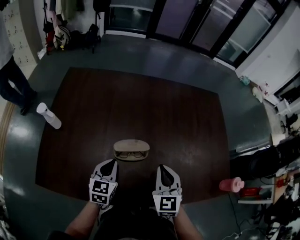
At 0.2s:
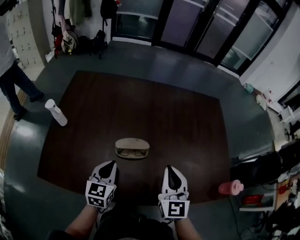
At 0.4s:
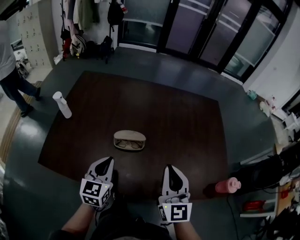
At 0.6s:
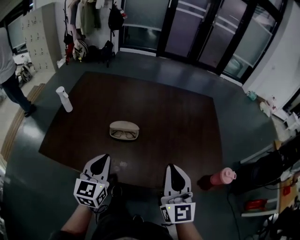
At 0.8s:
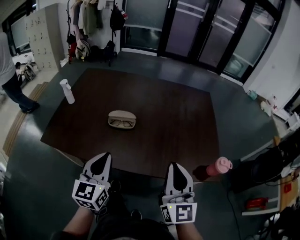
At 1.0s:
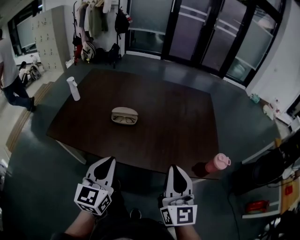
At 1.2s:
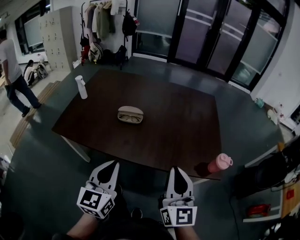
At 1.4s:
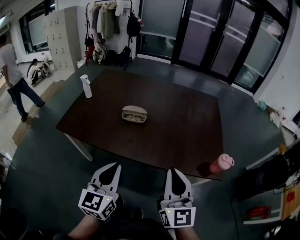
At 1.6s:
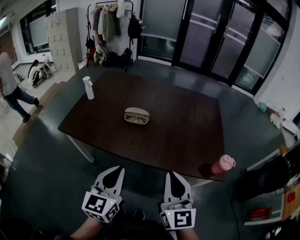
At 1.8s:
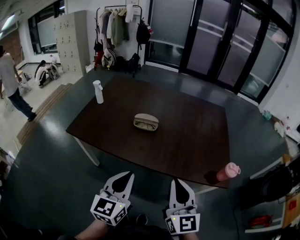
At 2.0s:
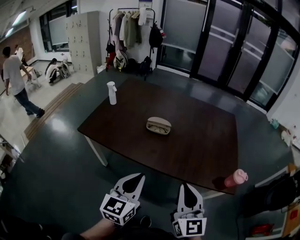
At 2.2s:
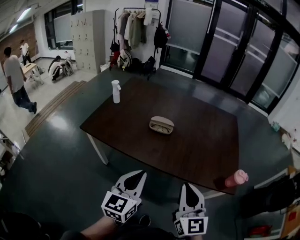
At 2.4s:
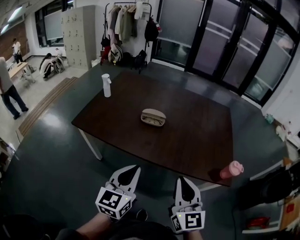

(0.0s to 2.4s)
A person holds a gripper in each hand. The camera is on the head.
0.0s - 1.2s: Both grippers move backward, upward and to the right, about 40 cm. The right gripper changes its angle by some 40 degrees, while the left gripper turns by approximately 20 degrees.
1.2s - 2.4s: The left gripper ends up approximately 5 cm from where it was. Meanwhile the right gripper moves to the left, approximately 5 cm.

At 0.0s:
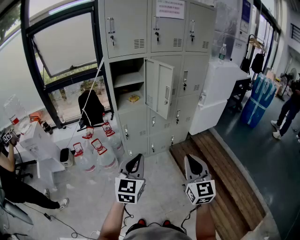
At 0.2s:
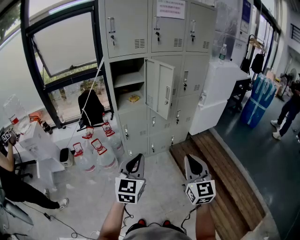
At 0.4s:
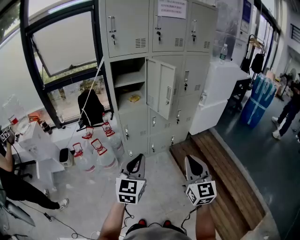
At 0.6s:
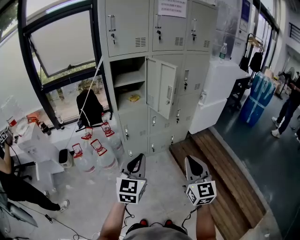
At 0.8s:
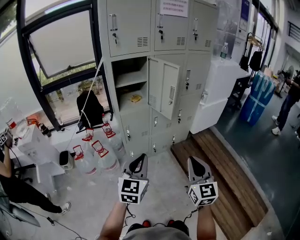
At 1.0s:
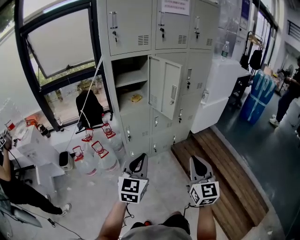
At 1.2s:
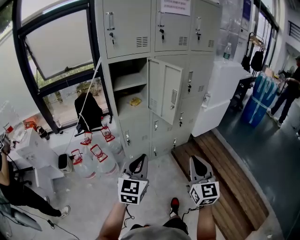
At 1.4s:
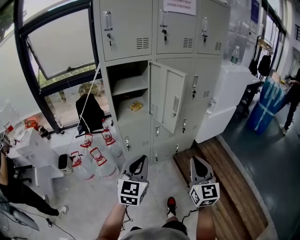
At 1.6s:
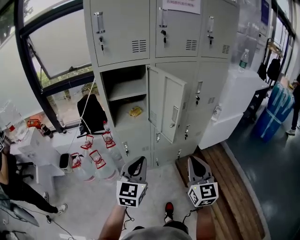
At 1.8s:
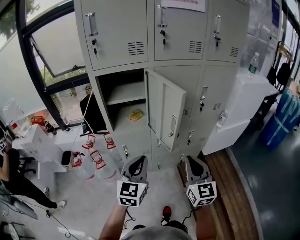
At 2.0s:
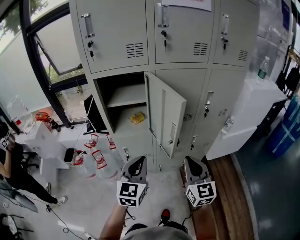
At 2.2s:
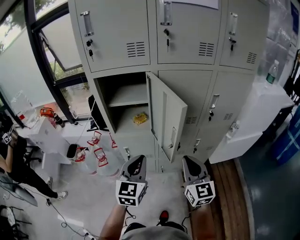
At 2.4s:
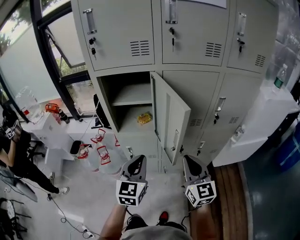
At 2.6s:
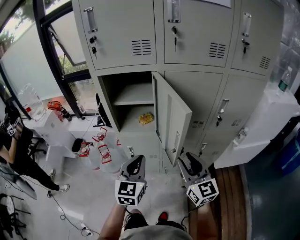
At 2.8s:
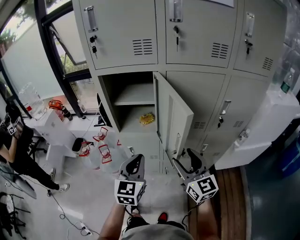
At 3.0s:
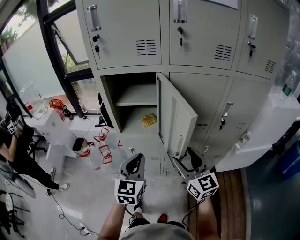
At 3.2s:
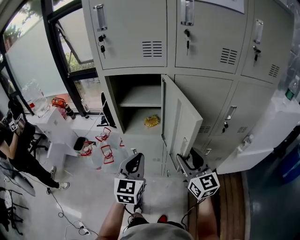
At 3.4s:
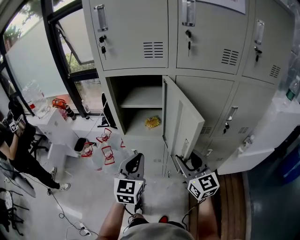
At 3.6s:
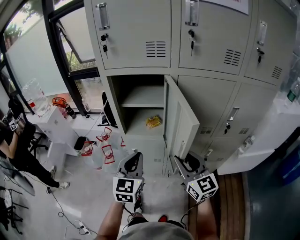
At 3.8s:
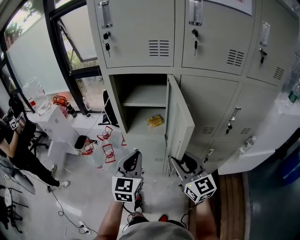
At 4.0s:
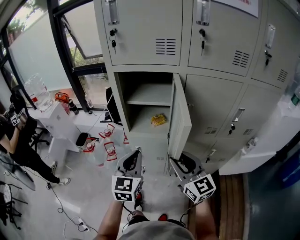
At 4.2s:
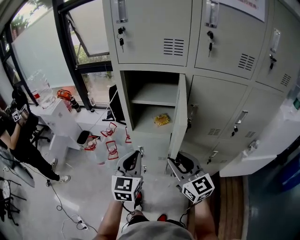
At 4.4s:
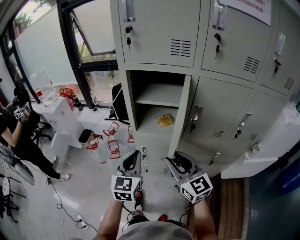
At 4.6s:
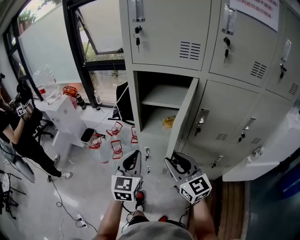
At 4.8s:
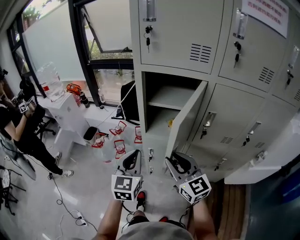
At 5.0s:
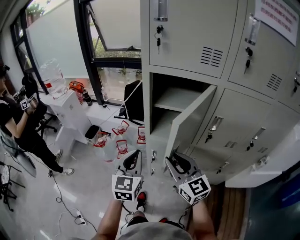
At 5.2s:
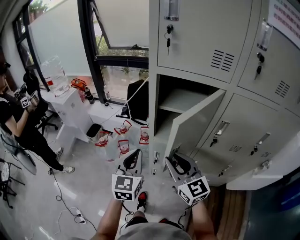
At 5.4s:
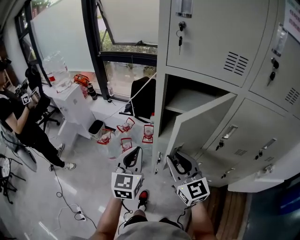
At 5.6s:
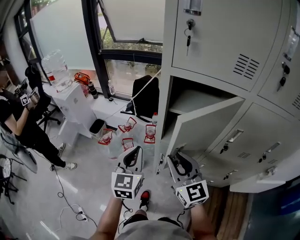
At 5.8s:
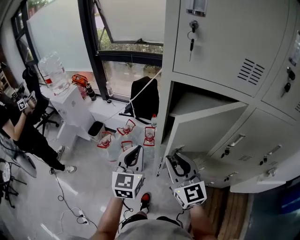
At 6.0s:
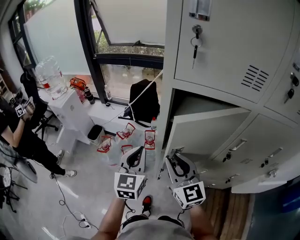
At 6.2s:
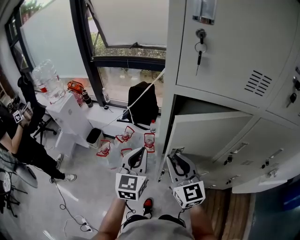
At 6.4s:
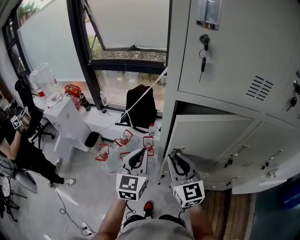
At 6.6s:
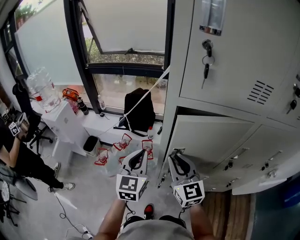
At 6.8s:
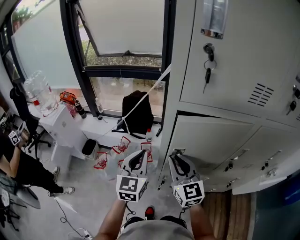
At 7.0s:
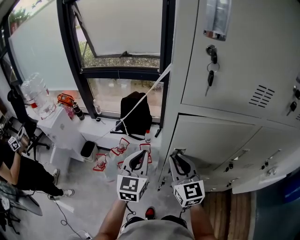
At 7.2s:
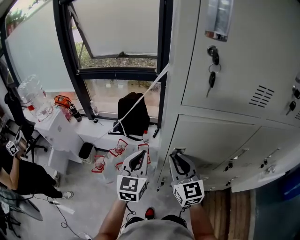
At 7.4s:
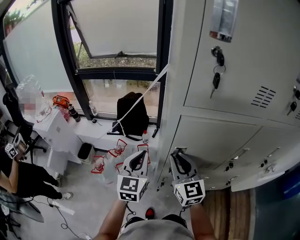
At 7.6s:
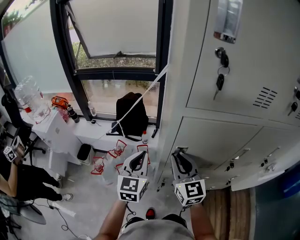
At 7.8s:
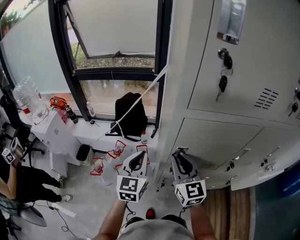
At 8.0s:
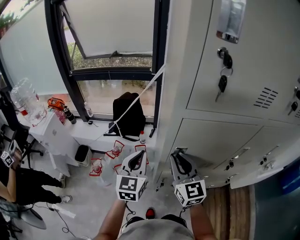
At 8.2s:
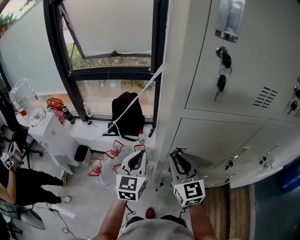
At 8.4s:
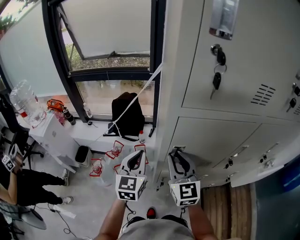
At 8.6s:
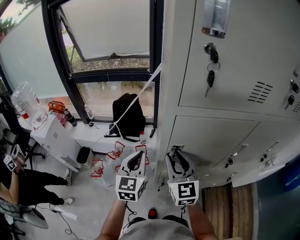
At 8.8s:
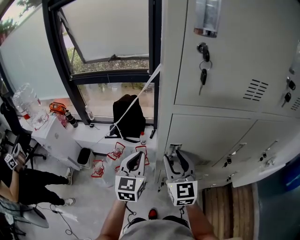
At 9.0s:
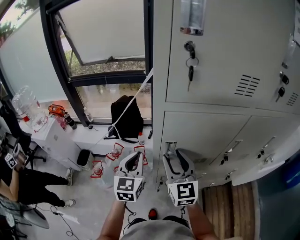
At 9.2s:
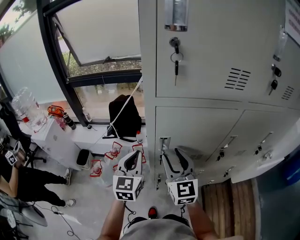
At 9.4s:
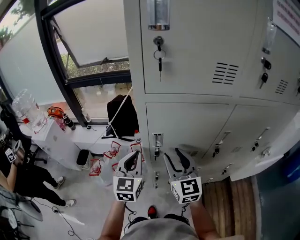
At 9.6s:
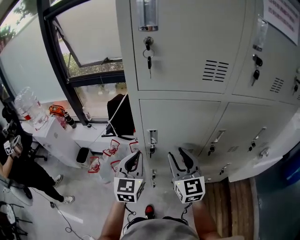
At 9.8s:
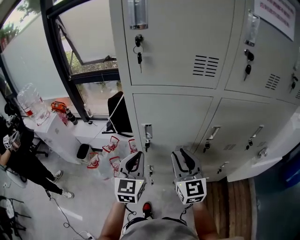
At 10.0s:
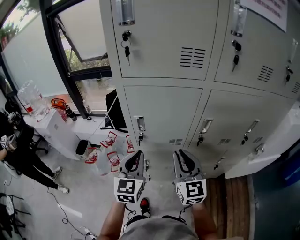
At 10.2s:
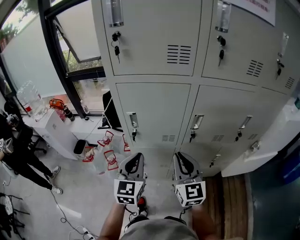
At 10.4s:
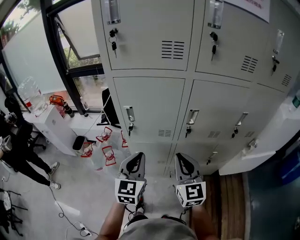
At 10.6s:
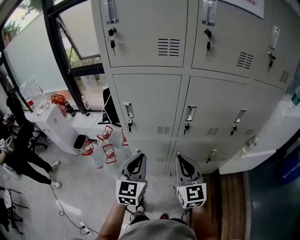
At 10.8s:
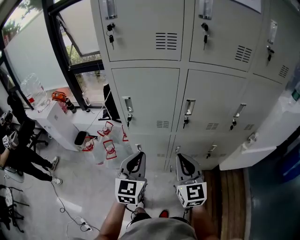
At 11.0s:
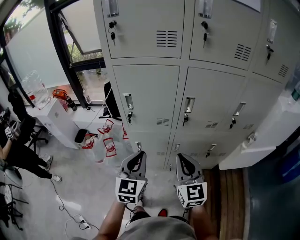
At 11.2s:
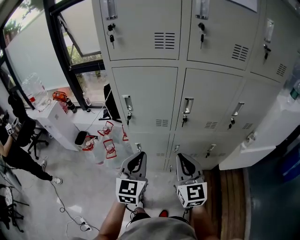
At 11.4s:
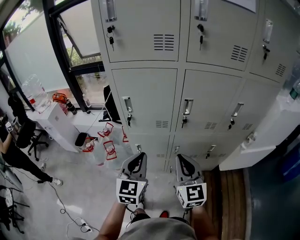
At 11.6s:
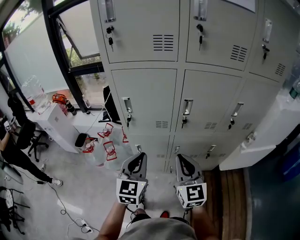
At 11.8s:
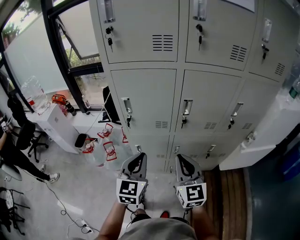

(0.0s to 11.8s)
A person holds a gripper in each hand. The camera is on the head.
0.0s - 1.4s: Both grippers move forward, about 15 cm.
1.4s - 3.0s: The left gripper moves some 25 cm, and changes its angle by roughly 30 degrees; the right gripper changes place by roughly 30 cm, swivels approximately 40 degrees, and opens up.
3.0s - 4.4s: Both grippers move to the left, some 10 cm. The right gripper closes up.
4.4s - 6.0s: Both grippers travel together forward and to the left, approximately 20 cm.
6.0s - 7.4s: Both grippers move forward, roughly 10 cm.
7.4s - 8.8s: The right gripper opens up.
8.8s - 10.4s: The grippers both shift to the right and backward by some 30 cm. The right gripper closes its fingers.
10.4s - 11.8s: The two grippers go approximately 5 cm backward.

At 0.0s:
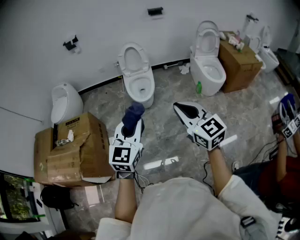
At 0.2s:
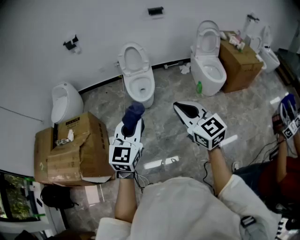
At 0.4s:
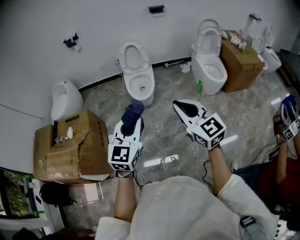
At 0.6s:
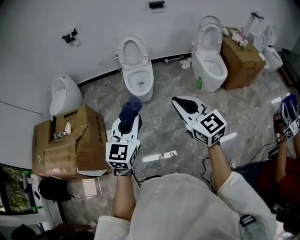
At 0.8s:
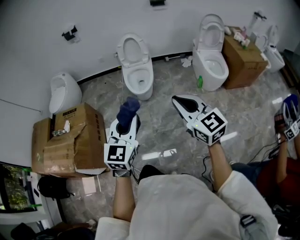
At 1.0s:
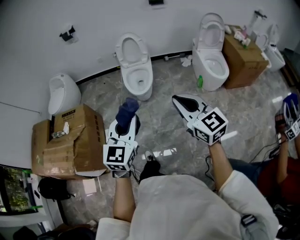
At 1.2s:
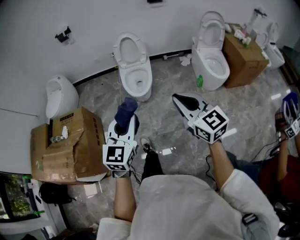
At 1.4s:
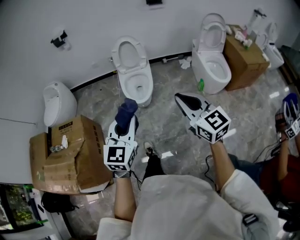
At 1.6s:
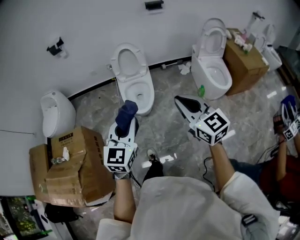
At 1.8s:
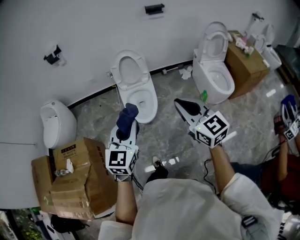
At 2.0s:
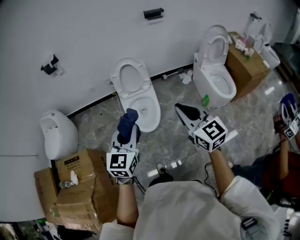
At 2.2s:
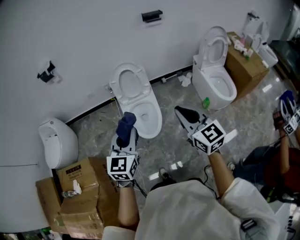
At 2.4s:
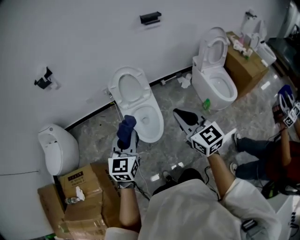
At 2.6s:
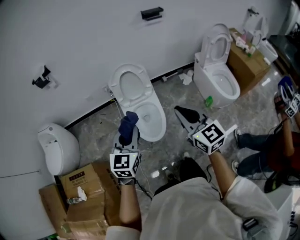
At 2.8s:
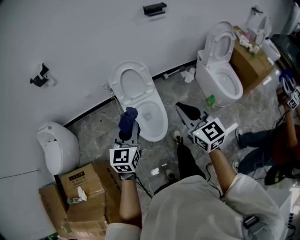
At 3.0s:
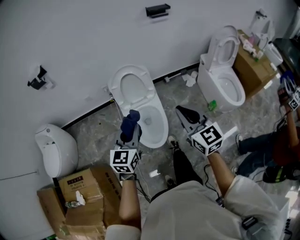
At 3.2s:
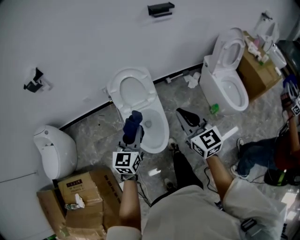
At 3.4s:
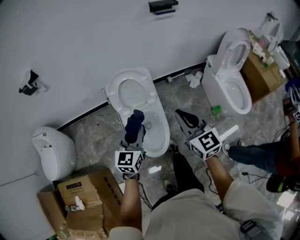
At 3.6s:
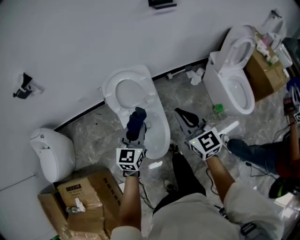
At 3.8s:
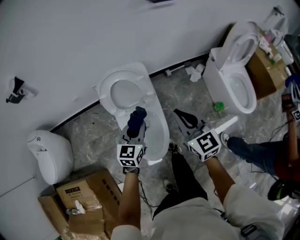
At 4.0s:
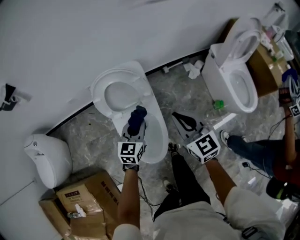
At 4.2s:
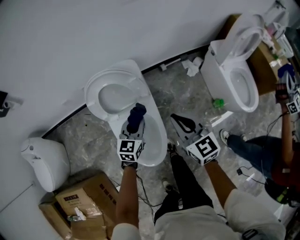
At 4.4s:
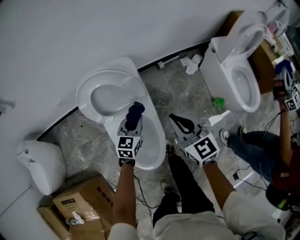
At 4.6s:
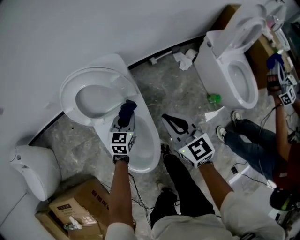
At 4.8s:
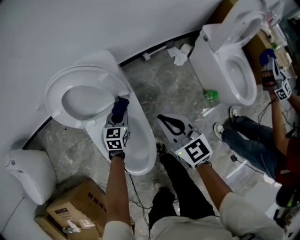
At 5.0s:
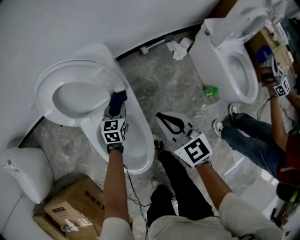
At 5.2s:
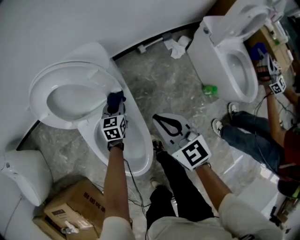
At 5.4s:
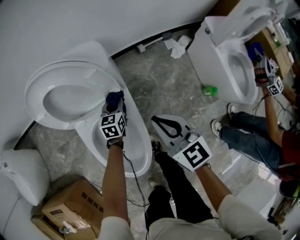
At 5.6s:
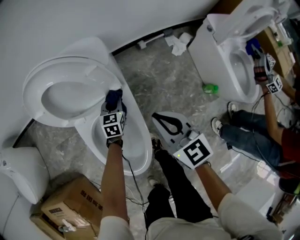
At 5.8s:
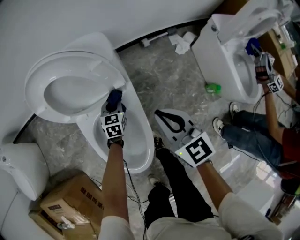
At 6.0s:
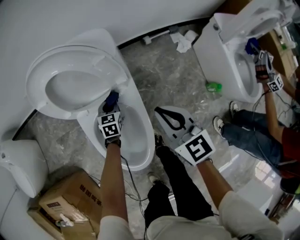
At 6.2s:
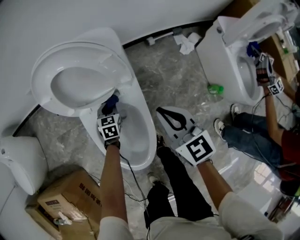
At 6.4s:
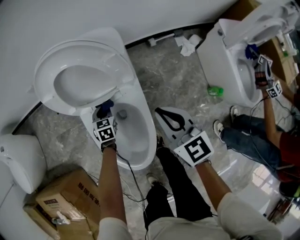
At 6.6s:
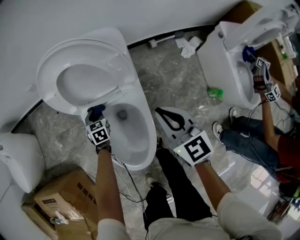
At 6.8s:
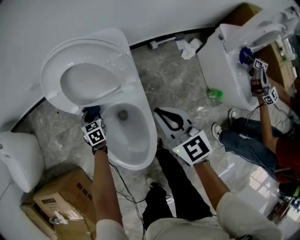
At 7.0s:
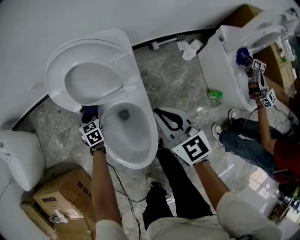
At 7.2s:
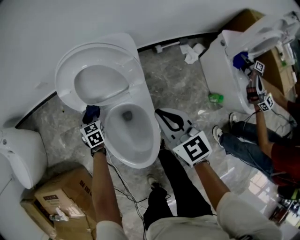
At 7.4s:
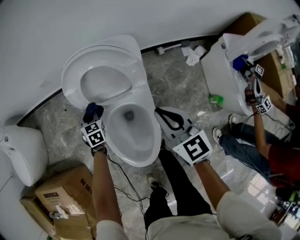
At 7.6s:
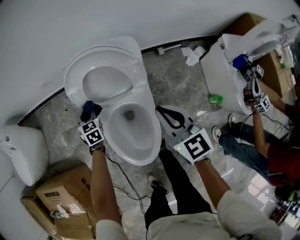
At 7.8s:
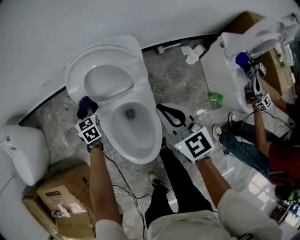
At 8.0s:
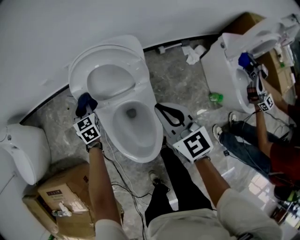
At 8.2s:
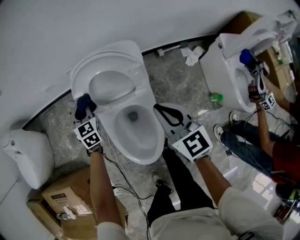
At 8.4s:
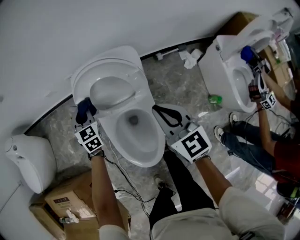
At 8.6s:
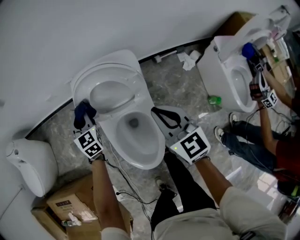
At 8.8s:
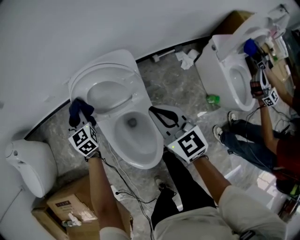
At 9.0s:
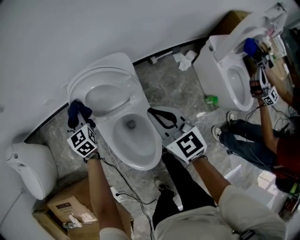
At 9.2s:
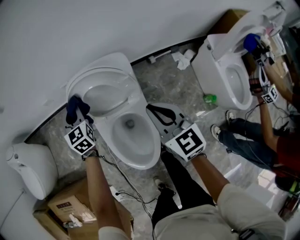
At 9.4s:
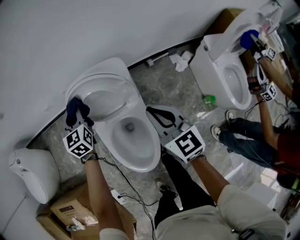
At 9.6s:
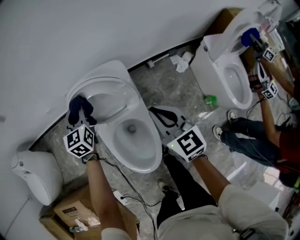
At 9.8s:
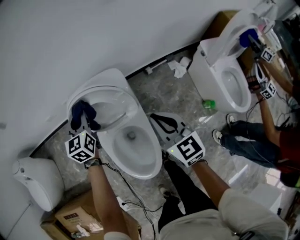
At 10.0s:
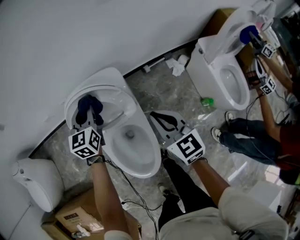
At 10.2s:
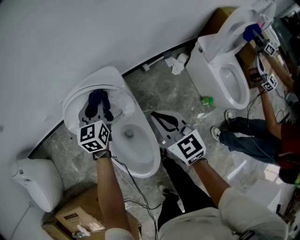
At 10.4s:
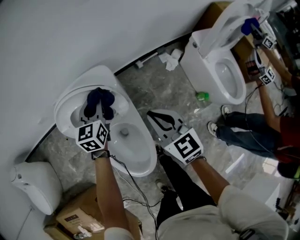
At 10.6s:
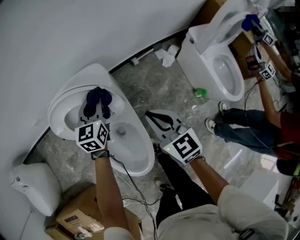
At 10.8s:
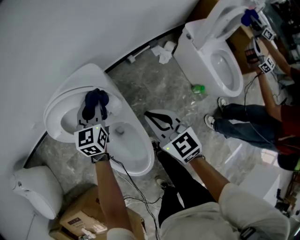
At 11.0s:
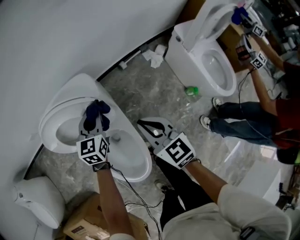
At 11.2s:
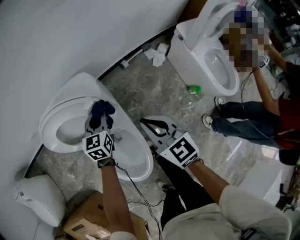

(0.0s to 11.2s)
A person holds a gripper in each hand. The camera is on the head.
0.0s - 1.6s: Both grippers travel together forward, approximately 25 cm.
1.6s - 3.2s: The two grippers go roughly 40 cm forward.
3.2s - 4.8s: Both grippers travel together downward and forward, approximately 40 cm. The left gripper rotates approximately 20 degrees.
4.8s - 6.4s: The left gripper is displaced to the left and downward by some 15 cm, and swivels some 30 degrees, while the right gripper shifts by about 5 cm.
6.4s - 8.0s: The right gripper goes roughly 10 cm upward and to the left. Meanwhile the left gripper goes some 25 cm upward, to the left and forward.
8.0s - 9.6s: The right gripper shifts some 5 cm to the right. The left gripper is displaced upward and to the right by about 20 cm, and rotates about 20 degrees.
9.6s - 11.2s: The right gripper travels downward and to the right by roughly 10 cm; the left gripper goes some 25 cm to the right and downward, and rotates roughly 20 degrees.
